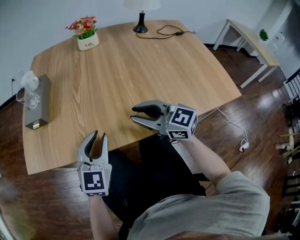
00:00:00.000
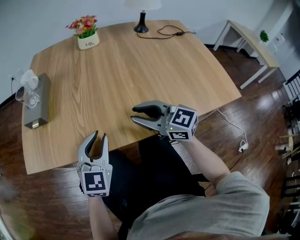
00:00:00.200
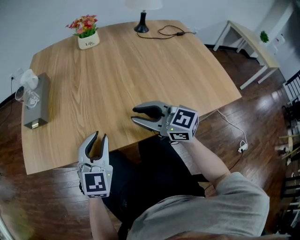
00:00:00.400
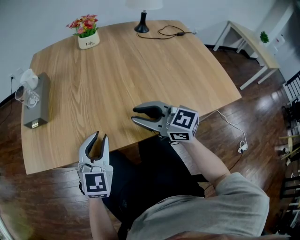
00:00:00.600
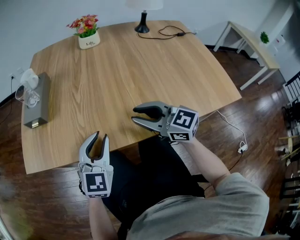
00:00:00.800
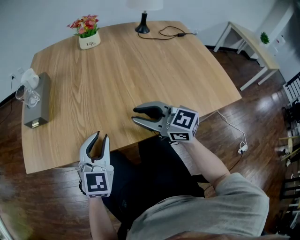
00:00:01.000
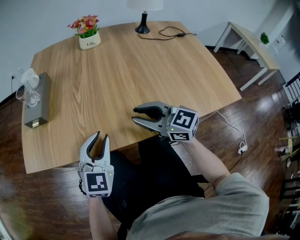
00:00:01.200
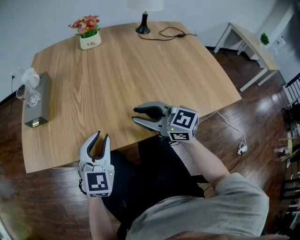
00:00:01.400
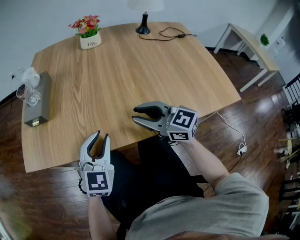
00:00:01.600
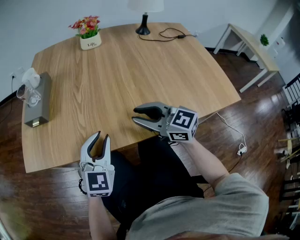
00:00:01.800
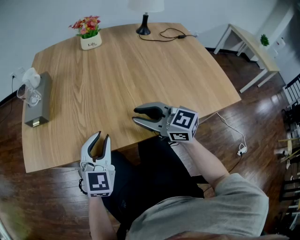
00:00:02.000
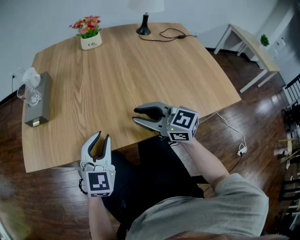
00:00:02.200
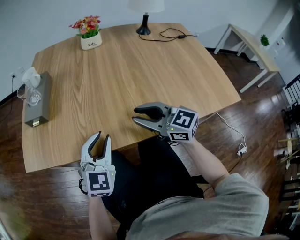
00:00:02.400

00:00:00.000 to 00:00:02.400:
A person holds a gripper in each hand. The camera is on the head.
00:00:00.000 to 00:00:02.400: Both grippers stay about where they are.

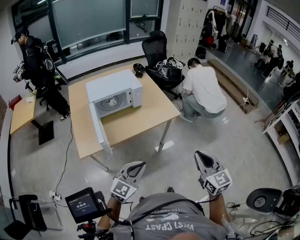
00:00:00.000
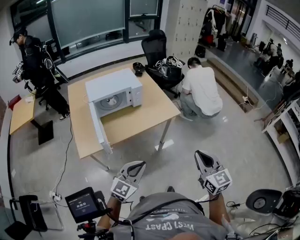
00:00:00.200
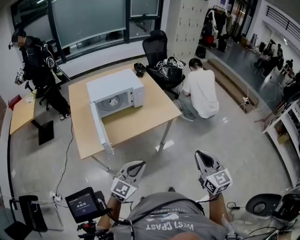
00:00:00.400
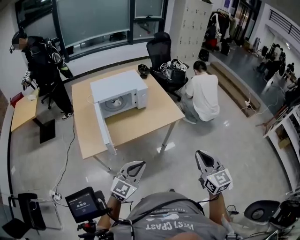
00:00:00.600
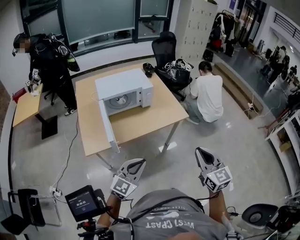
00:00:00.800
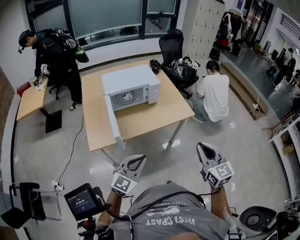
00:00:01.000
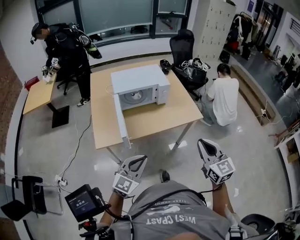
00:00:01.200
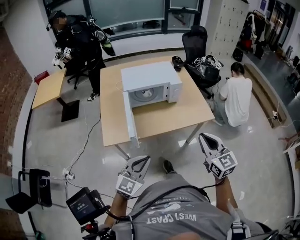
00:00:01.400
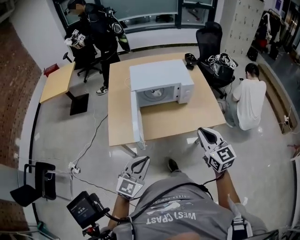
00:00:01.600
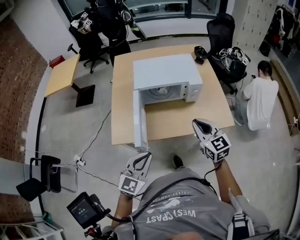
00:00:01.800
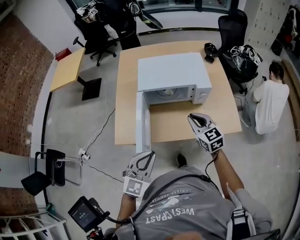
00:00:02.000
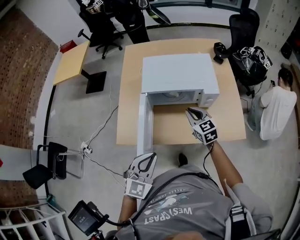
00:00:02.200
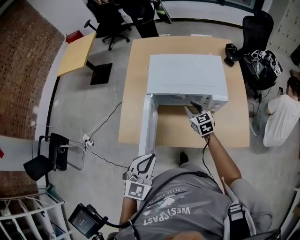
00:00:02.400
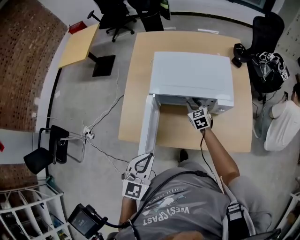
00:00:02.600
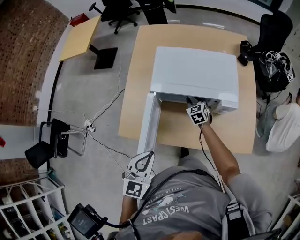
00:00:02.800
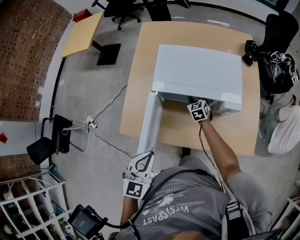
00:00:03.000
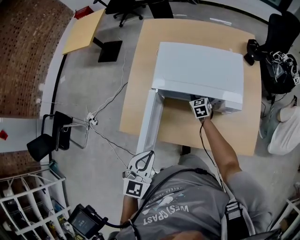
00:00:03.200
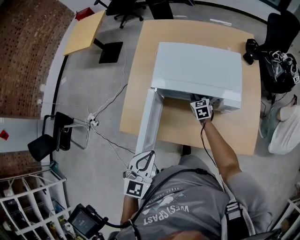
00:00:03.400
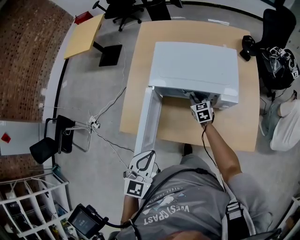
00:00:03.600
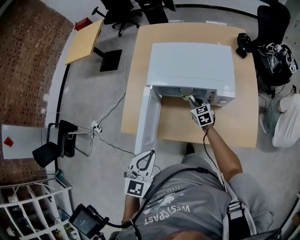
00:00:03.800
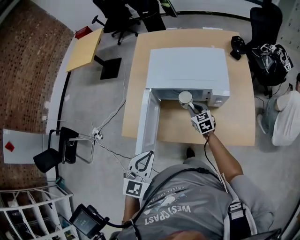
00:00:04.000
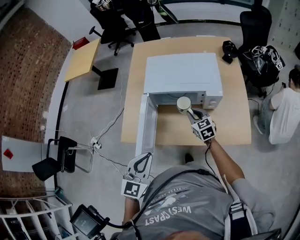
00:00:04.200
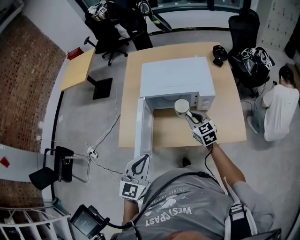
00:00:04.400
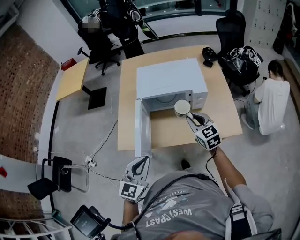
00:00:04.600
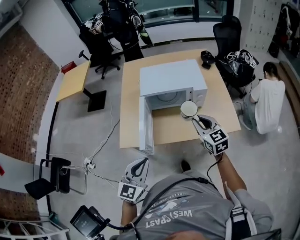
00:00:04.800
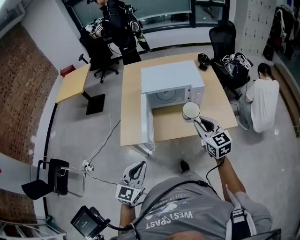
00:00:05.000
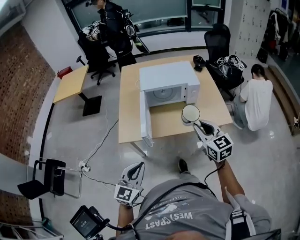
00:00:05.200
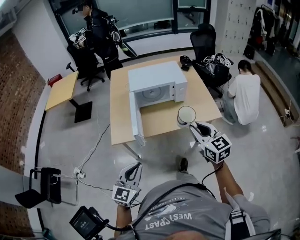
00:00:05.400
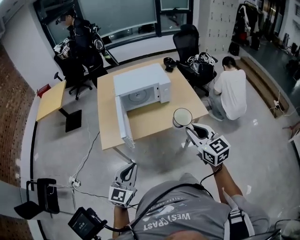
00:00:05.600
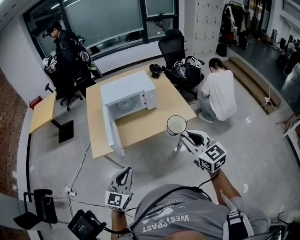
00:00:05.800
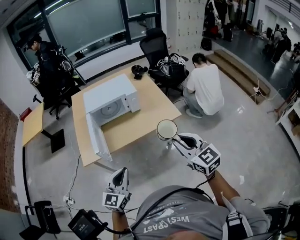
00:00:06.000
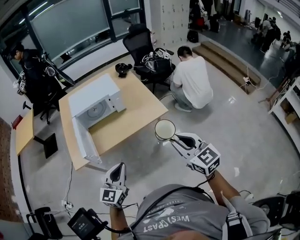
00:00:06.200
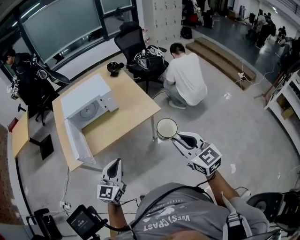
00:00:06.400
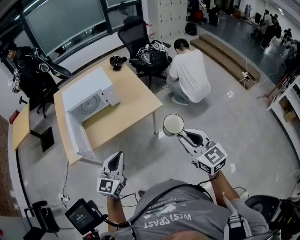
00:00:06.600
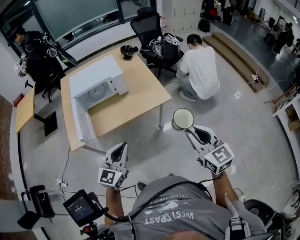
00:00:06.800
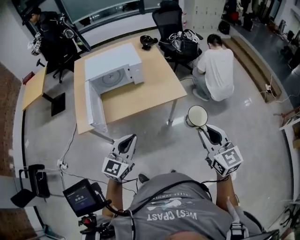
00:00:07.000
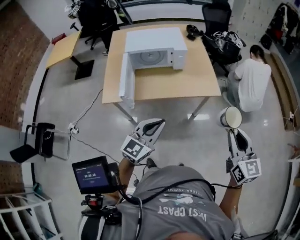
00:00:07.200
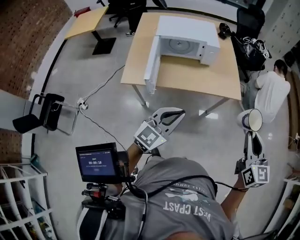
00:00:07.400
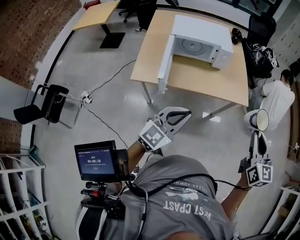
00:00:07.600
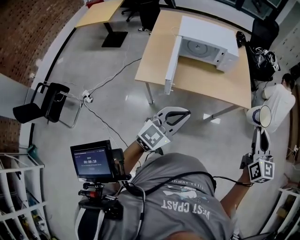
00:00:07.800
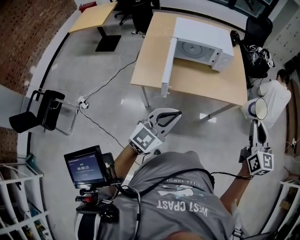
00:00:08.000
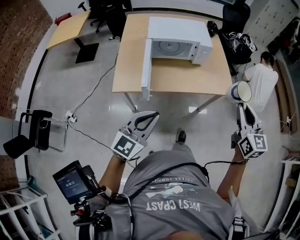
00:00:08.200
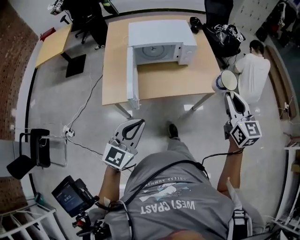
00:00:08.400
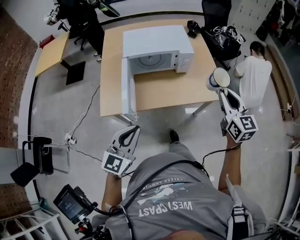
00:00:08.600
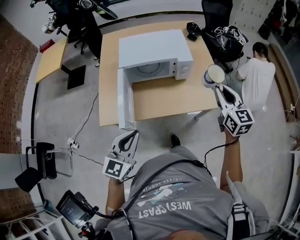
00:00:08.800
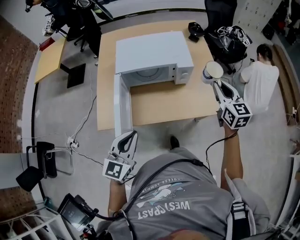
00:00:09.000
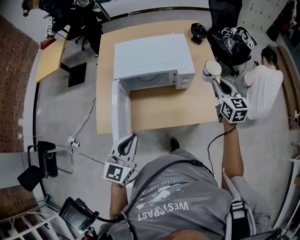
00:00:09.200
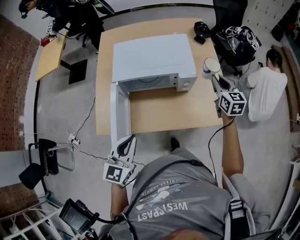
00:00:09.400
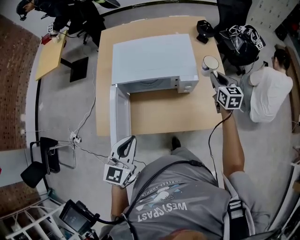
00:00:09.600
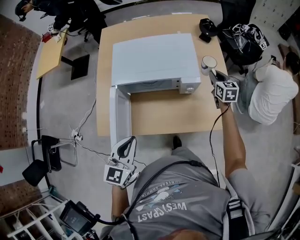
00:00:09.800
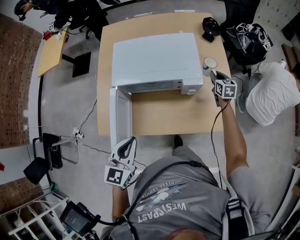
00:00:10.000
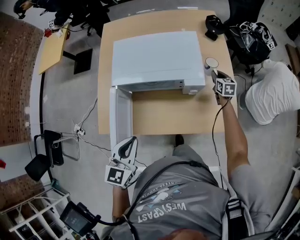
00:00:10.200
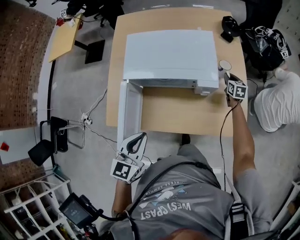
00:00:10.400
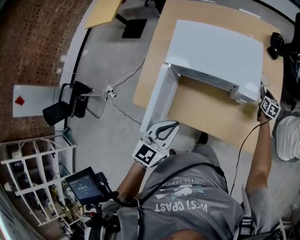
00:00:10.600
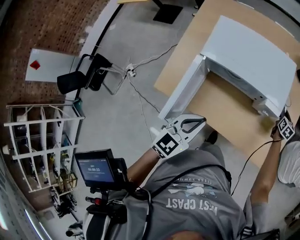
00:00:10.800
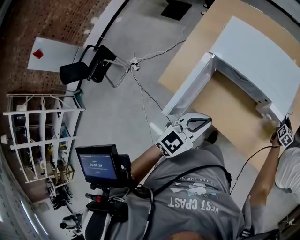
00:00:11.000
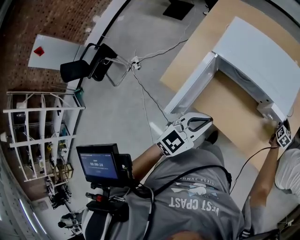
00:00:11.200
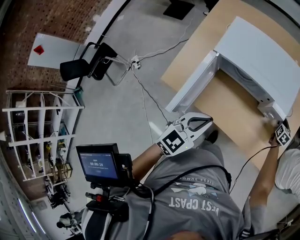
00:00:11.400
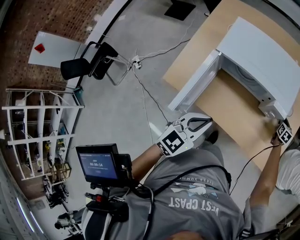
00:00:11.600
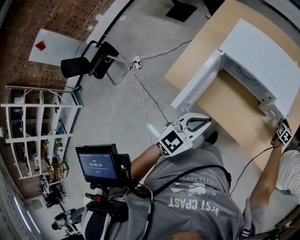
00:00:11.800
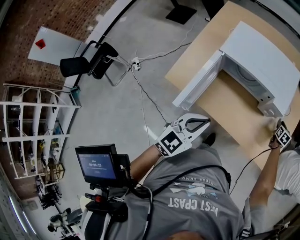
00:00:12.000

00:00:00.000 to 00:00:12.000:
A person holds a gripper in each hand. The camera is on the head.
00:00:00.000 to 00:00:01.600: The left gripper heads to the left and forward, covering some 15 cm, and changes its angle by about 20 degrees, while the right gripper shifts approximately 30 cm forward and to the left, and rotates some 20 degrees.
00:00:01.600 to 00:00:03.000: The left gripper moves forward, roughly 25 cm, and changes its angle by roughly 30 degrees, while the right gripper shifts roughly 60 cm forward and downward, swivels approximately 30 degrees, and opens.
00:00:03.000 to 00:00:04.400: The right gripper moves backward and upward, roughly 30 cm. Meanwhile the left gripper shifts about 10 cm backward.
00:00:04.400 to 00:00:06.000: The left gripper shifts approximately 25 cm backward, and swivels roughly 20 degrees, while the right gripper travels backward and upward by about 50 cm, and rotates about 20 degrees.
00:00:06.000 to 00:00:07.600: The left gripper goes to the right and returns, some 15 cm each way. Meanwhile the right gripper travels to the right and back again, some 15 cm each way.
00:00:07.600 to 00:00:09.000: The right gripper is displaced forward by approximately 40 cm. Meanwhile the left gripper is displaced forward and to the left by about 25 cm.
00:00:09.000 to 00:00:10.400: The right gripper goes approximately 40 cm forward and downward, and turns by about 30 degrees. The left gripper is displaced forward by roughly 15 cm.
00:00:10.400 to 00:00:12.000: Both grippers travel together backward, some 5 cm.

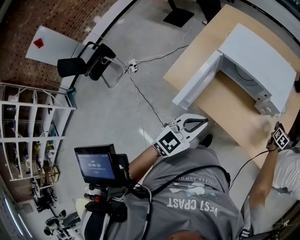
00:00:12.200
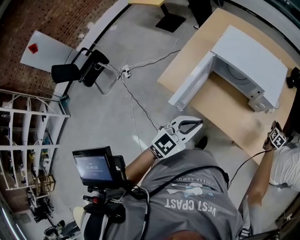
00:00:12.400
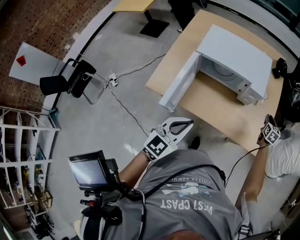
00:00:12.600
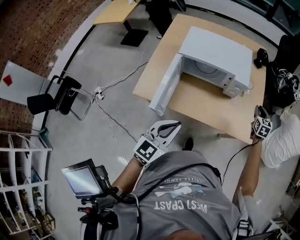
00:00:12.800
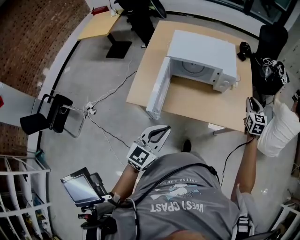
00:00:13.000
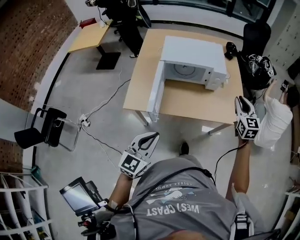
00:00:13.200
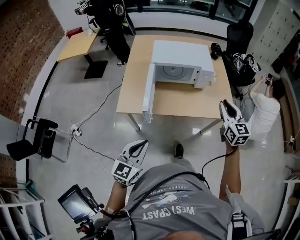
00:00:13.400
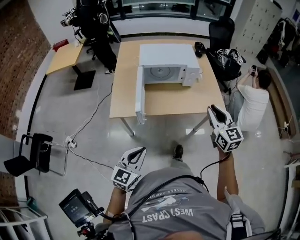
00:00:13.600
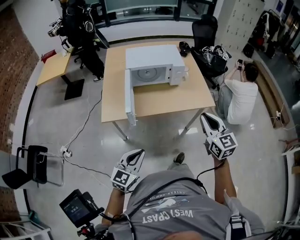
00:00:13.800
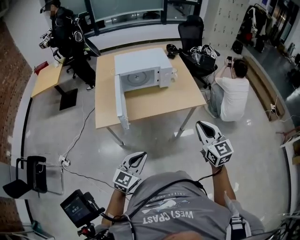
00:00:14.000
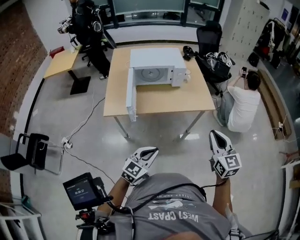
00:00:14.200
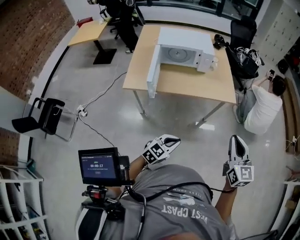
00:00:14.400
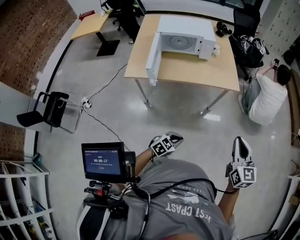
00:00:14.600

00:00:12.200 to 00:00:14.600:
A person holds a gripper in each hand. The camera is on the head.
00:00:12.200 to 00:00:13.400: The left gripper heads backward and to the left, covering some 30 cm. The right gripper is displaced backward and upward by approximately 60 cm, and tips its fingers upward by about 40 degrees.
00:00:13.400 to 00:00:14.600: The right gripper shifts some 40 cm backward and to the right. The left gripper goes about 35 cm to the right, downward and backward, and swivels about 40 degrees.

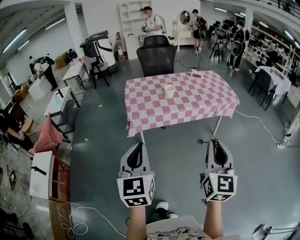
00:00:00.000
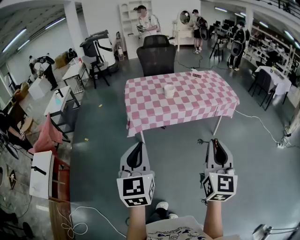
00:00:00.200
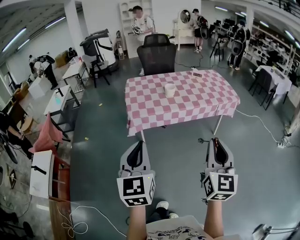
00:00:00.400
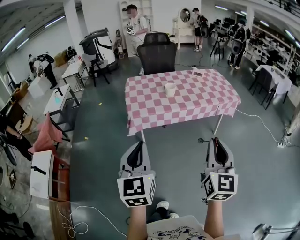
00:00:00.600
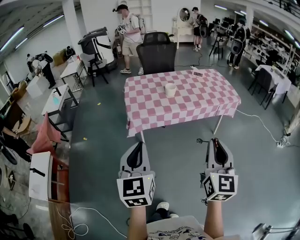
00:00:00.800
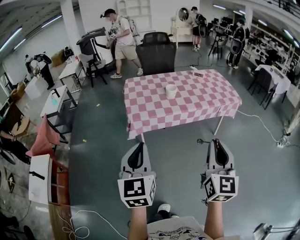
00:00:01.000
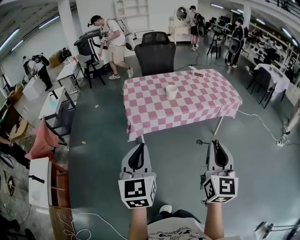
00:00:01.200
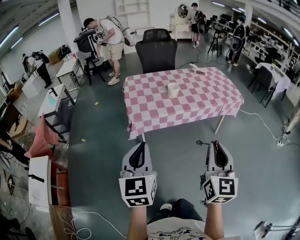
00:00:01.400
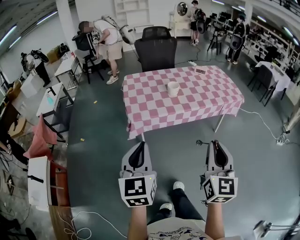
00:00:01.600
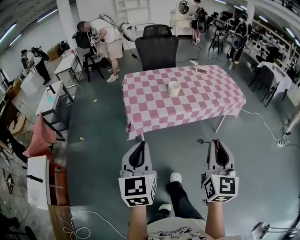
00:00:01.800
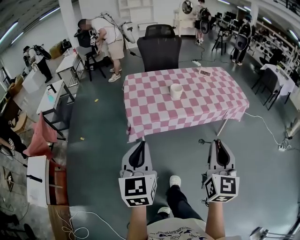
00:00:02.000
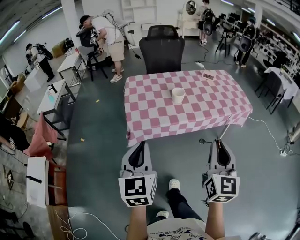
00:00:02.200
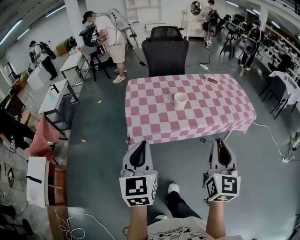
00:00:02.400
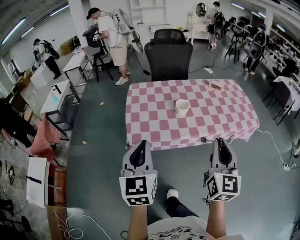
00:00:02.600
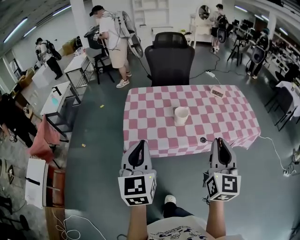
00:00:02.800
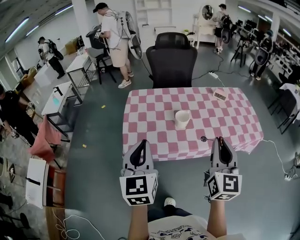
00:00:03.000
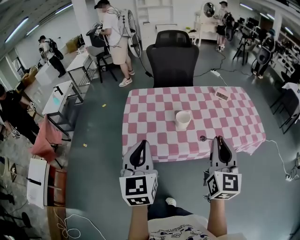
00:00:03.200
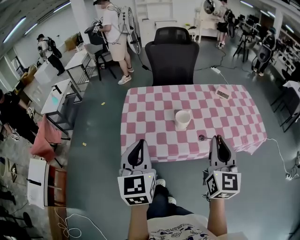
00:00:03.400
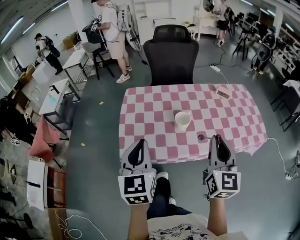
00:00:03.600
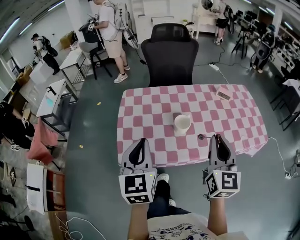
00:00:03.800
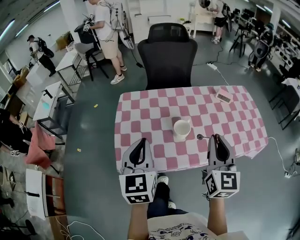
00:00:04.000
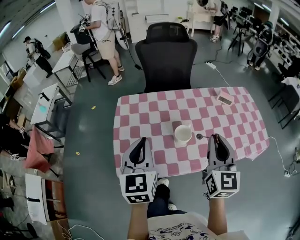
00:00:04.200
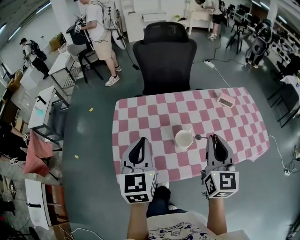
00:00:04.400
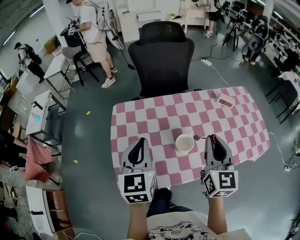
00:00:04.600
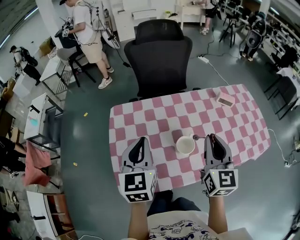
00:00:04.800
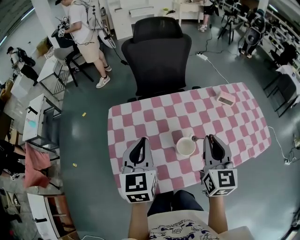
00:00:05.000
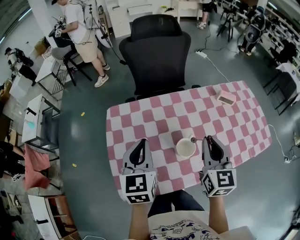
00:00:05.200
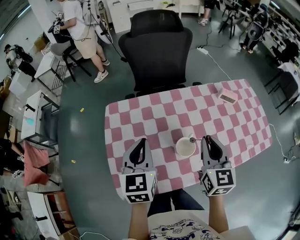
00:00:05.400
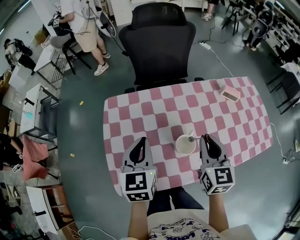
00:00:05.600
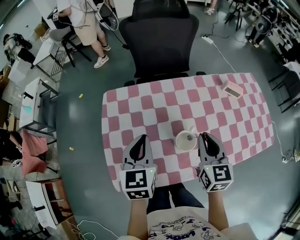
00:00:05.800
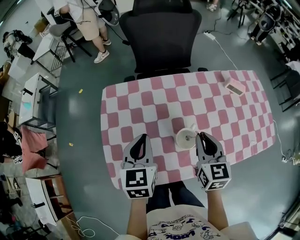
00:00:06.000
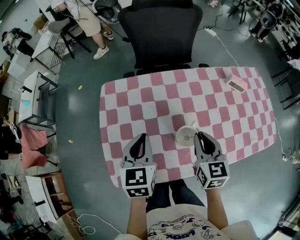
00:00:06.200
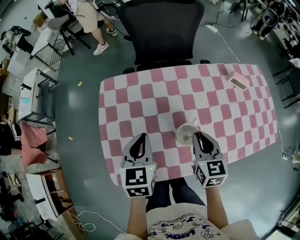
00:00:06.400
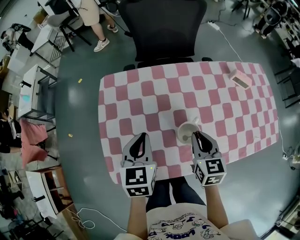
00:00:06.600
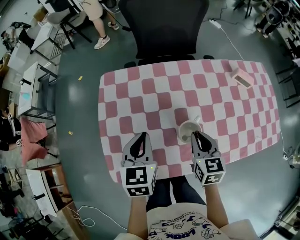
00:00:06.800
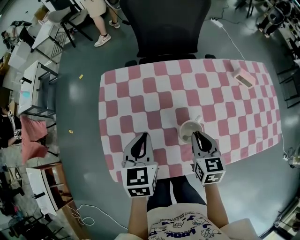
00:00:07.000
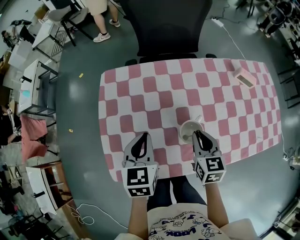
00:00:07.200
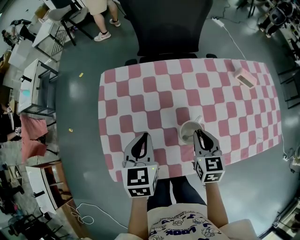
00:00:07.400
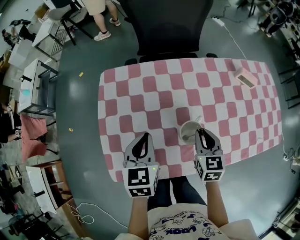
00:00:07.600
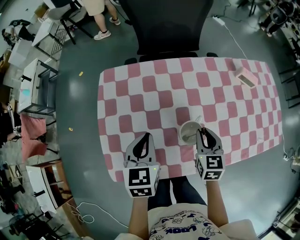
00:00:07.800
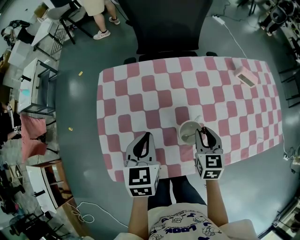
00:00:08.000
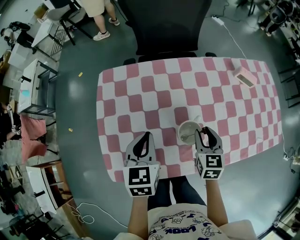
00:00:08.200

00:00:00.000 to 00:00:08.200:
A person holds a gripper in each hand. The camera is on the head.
00:00:00.000 to 00:00:01.600: Both grippers move forward and to the left, about 15 cm.
00:00:01.600 to 00:00:03.200: The grippers both shift forward by some 40 cm.
00:00:03.200 to 00:00:05.000: The two grippers go approximately 35 cm forward.
00:00:05.000 to 00:00:06.600: The grippers both shift downward by roughly 15 cm. The right gripper changes its angle by about 30 degrees.
00:00:06.600 to 00:00:08.200: The right gripper shifts roughly 5 cm downward, and opens up.
